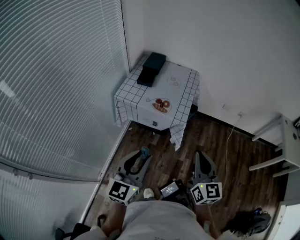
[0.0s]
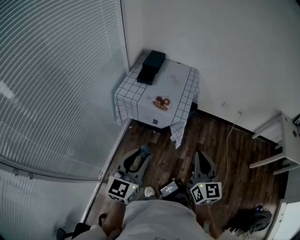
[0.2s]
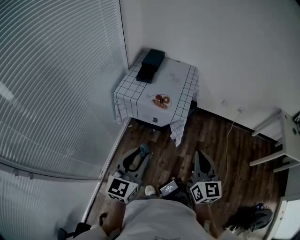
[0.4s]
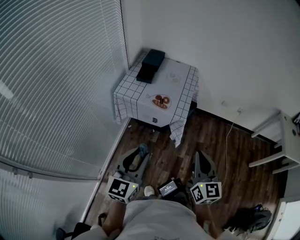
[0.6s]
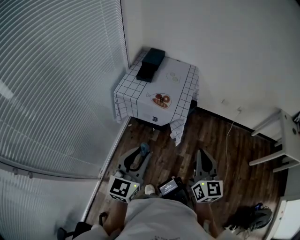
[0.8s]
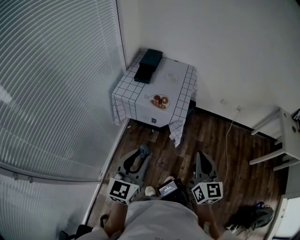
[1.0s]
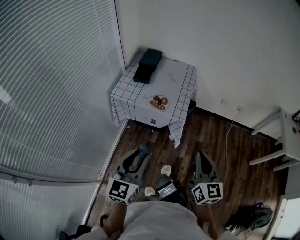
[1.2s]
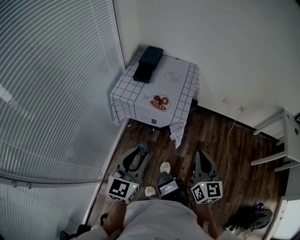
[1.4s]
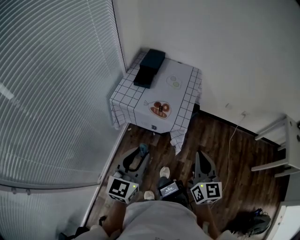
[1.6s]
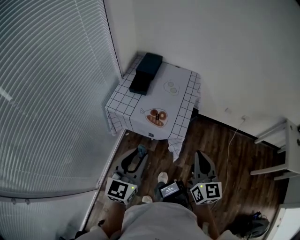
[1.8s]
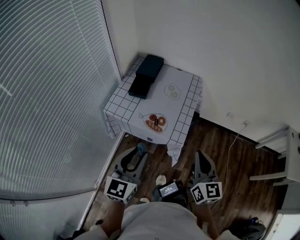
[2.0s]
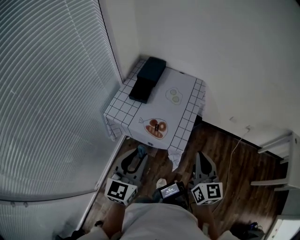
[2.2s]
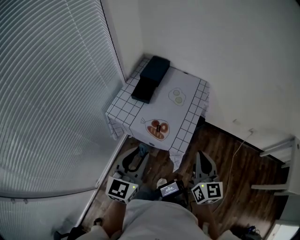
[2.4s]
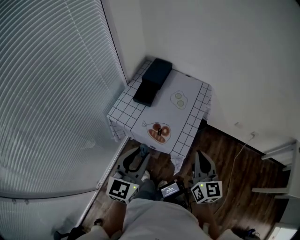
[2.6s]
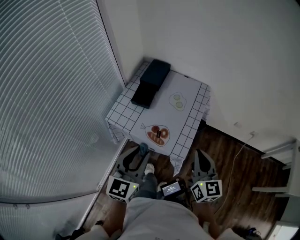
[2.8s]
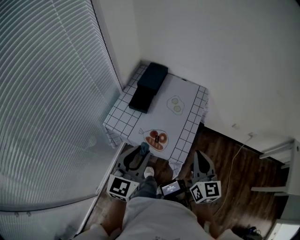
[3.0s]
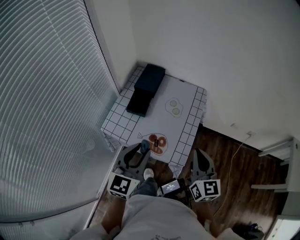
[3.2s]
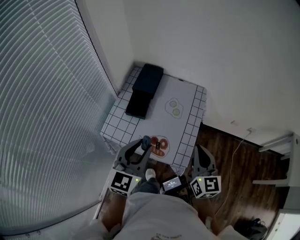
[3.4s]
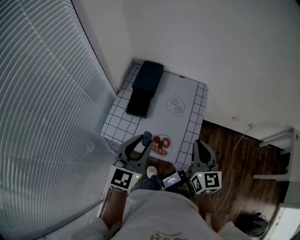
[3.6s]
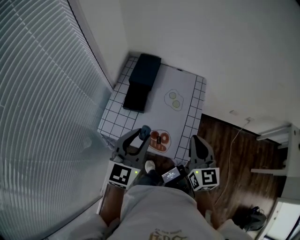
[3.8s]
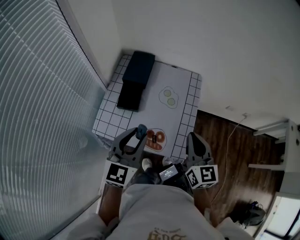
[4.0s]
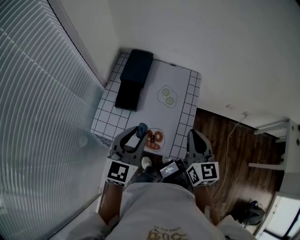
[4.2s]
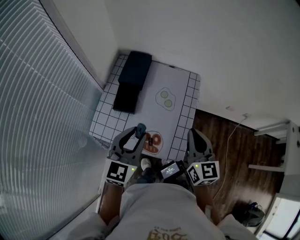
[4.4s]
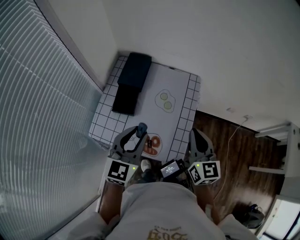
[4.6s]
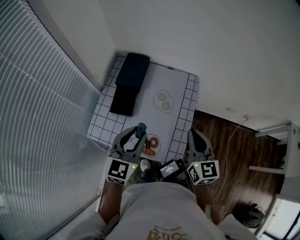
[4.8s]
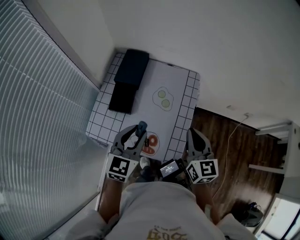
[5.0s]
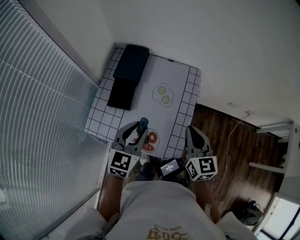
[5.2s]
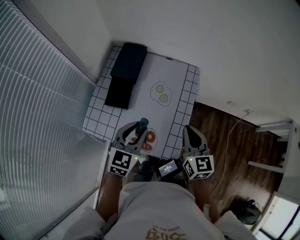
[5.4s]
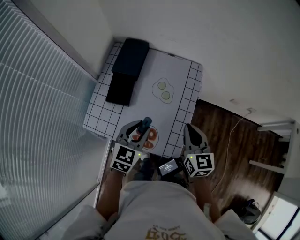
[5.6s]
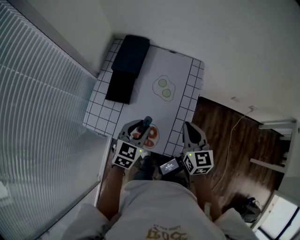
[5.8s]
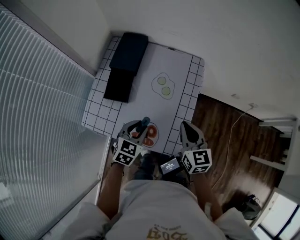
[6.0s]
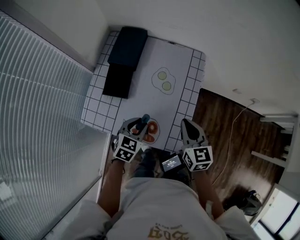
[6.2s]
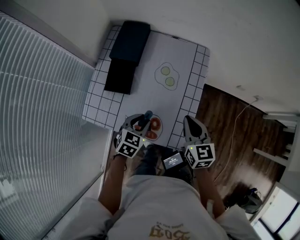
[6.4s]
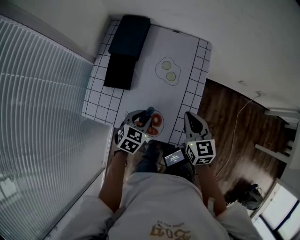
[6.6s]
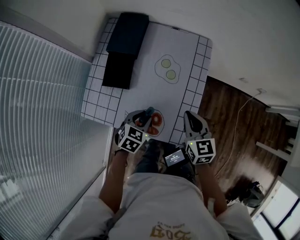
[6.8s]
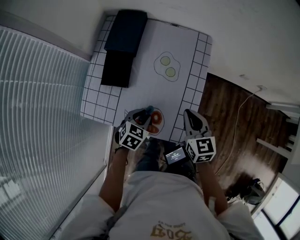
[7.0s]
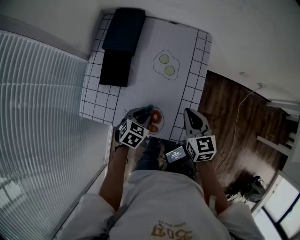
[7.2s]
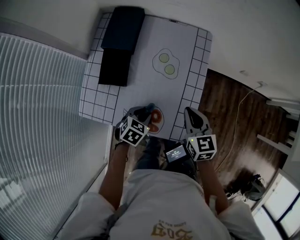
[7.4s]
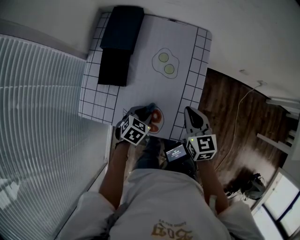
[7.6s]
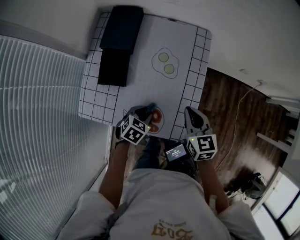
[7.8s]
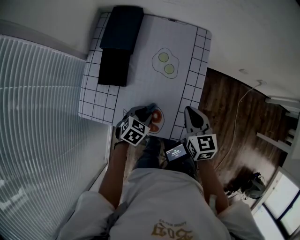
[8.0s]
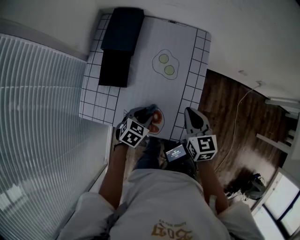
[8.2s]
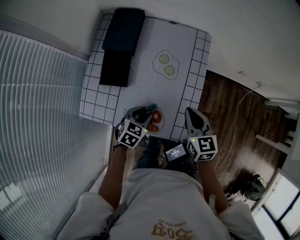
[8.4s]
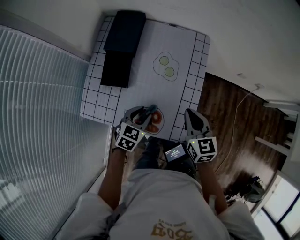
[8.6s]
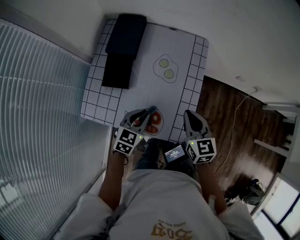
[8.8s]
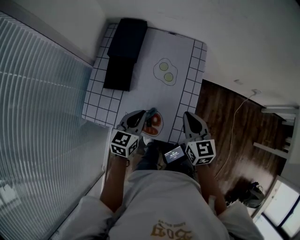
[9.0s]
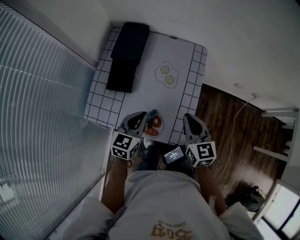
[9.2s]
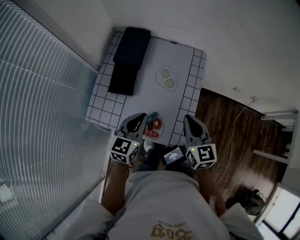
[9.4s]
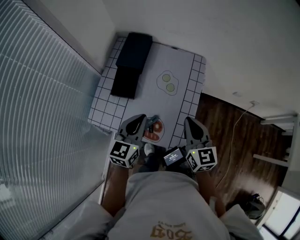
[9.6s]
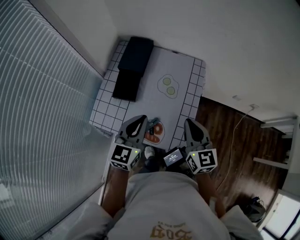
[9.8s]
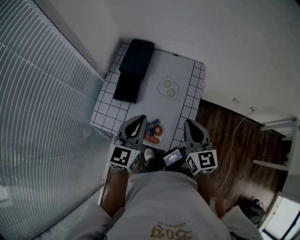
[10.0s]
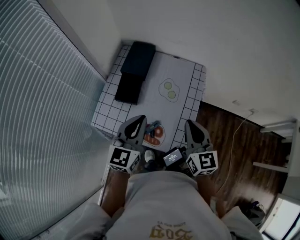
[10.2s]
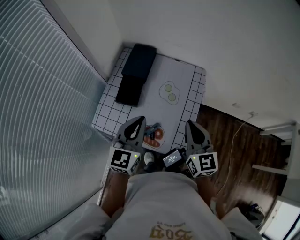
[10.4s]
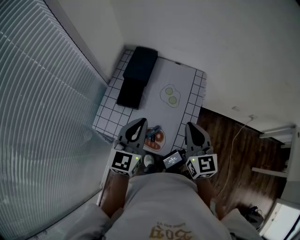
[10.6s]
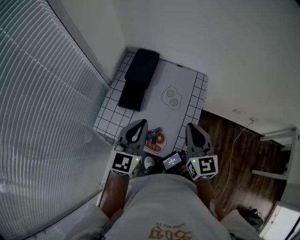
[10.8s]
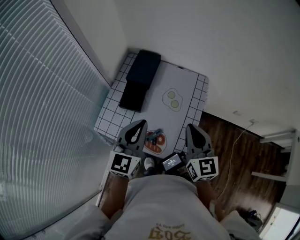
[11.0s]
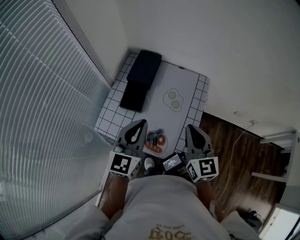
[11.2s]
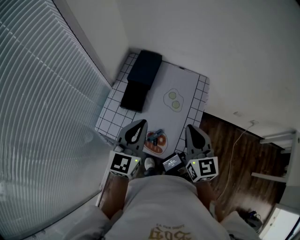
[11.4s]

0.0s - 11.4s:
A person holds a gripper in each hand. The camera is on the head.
0.0s - 1.4s: The left gripper changes place by some 5 cm.
1.4s - 2.8s: The grippers both shift forward by some 25 cm.
2.8s - 4.2s: Both grippers travel together forward, about 15 cm.
4.2s - 5.6s: The right gripper moves downward and forward, roughly 10 cm. The left gripper heads downward, to the right and forward, covering about 15 cm.
5.6s - 7.2s: The right gripper shifts roughly 10 cm downward. The left gripper moves downward, some 20 cm, and rotates about 30 degrees.
7.2s - 8.6s: There are only small adjustments of the grippers.
8.6s - 10.0s: The left gripper heads upward, covering about 25 cm, points its fingers about 30 degrees further upward, and closes up. The right gripper goes about 10 cm upward.
10.0s - 11.4s: There are only small adjustments of the grippers.

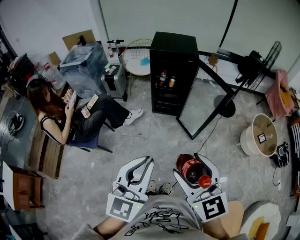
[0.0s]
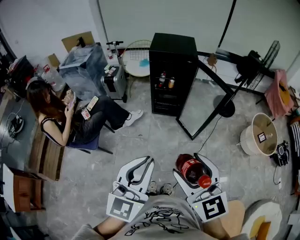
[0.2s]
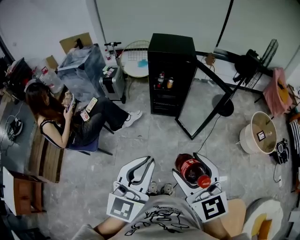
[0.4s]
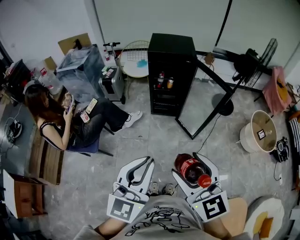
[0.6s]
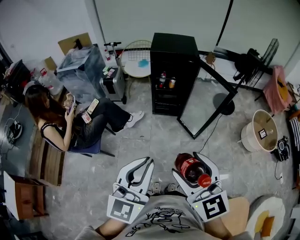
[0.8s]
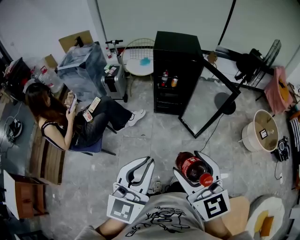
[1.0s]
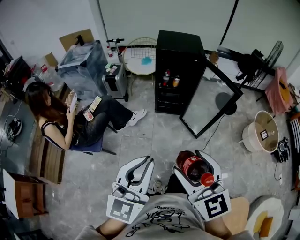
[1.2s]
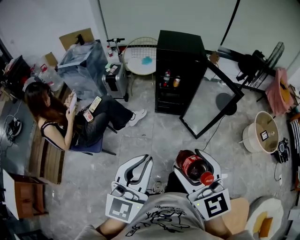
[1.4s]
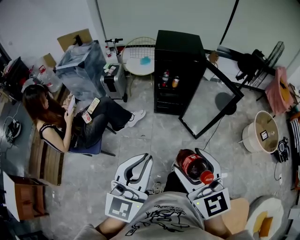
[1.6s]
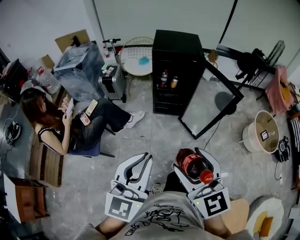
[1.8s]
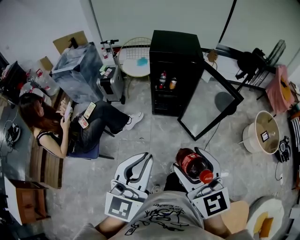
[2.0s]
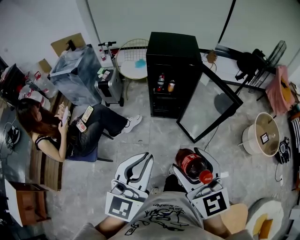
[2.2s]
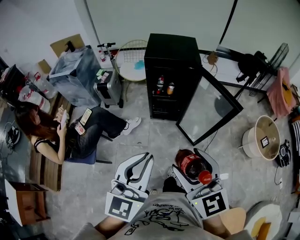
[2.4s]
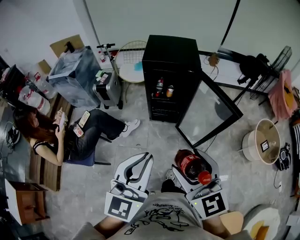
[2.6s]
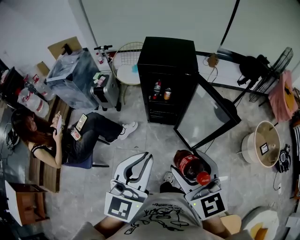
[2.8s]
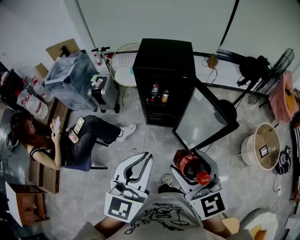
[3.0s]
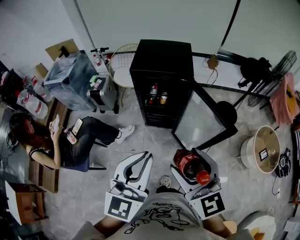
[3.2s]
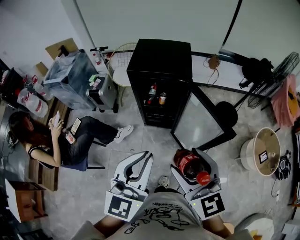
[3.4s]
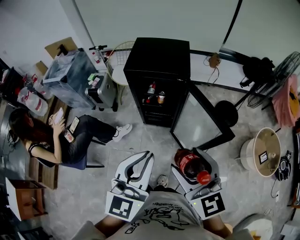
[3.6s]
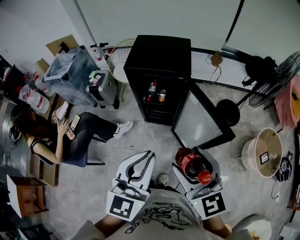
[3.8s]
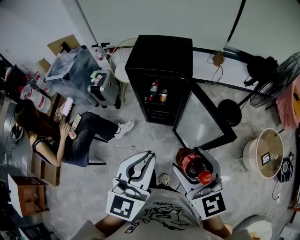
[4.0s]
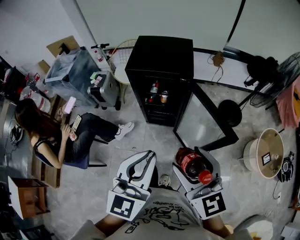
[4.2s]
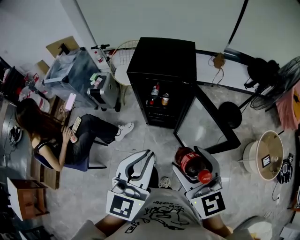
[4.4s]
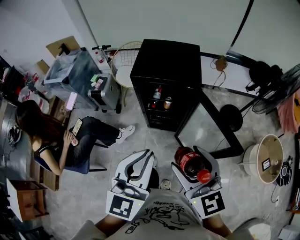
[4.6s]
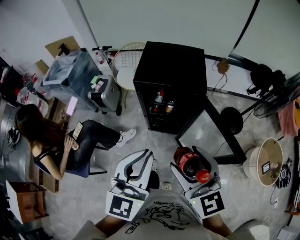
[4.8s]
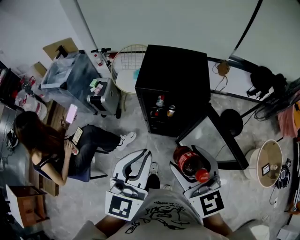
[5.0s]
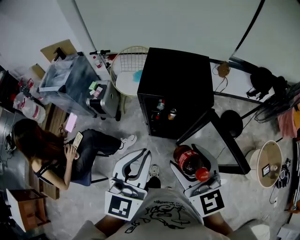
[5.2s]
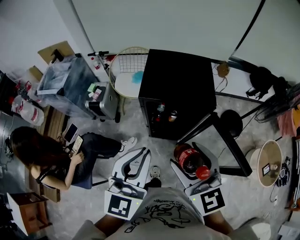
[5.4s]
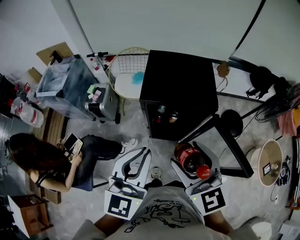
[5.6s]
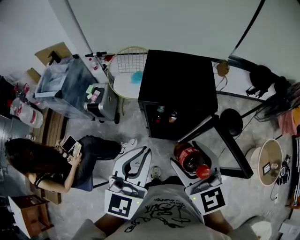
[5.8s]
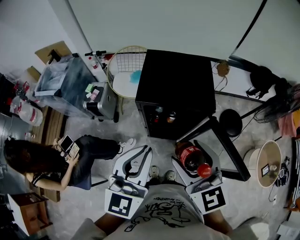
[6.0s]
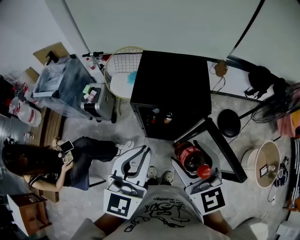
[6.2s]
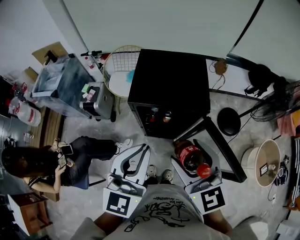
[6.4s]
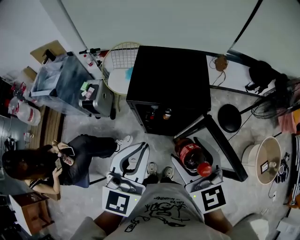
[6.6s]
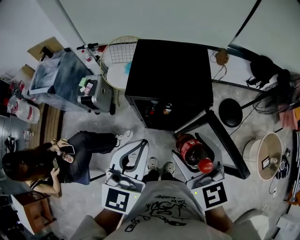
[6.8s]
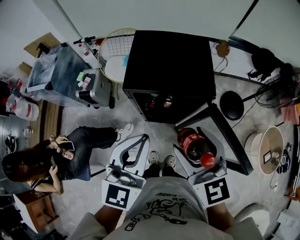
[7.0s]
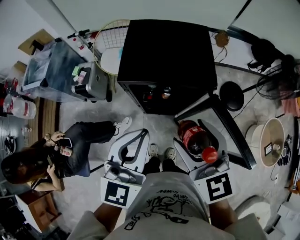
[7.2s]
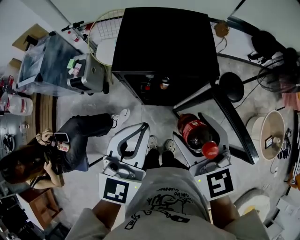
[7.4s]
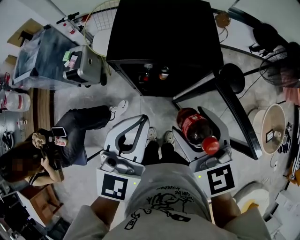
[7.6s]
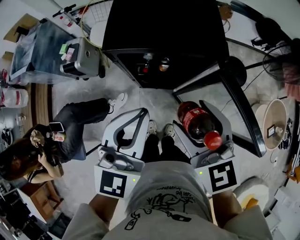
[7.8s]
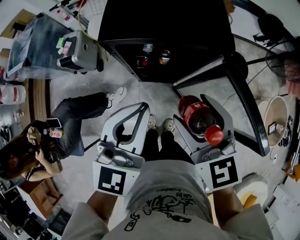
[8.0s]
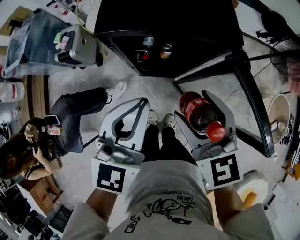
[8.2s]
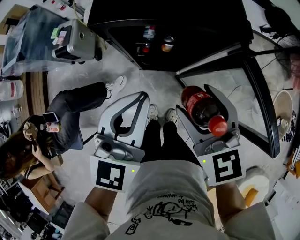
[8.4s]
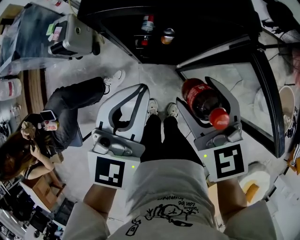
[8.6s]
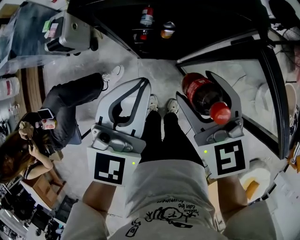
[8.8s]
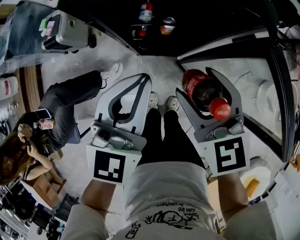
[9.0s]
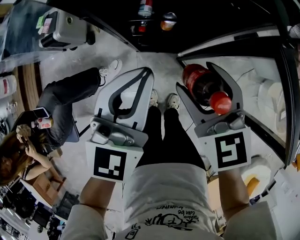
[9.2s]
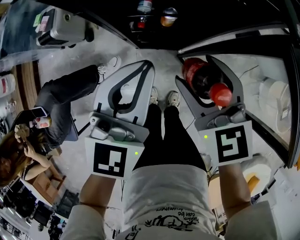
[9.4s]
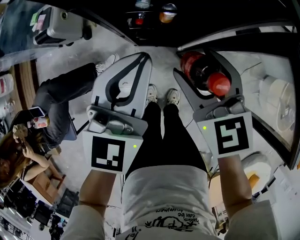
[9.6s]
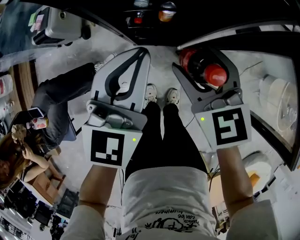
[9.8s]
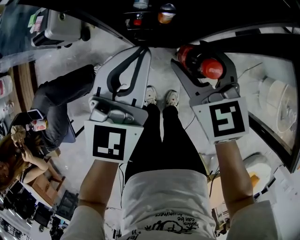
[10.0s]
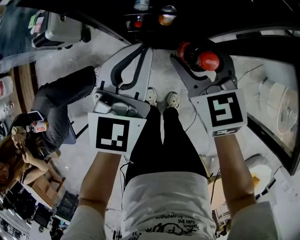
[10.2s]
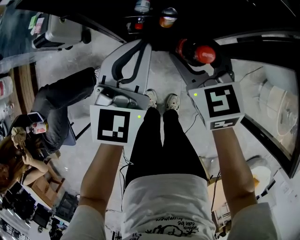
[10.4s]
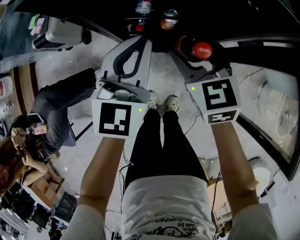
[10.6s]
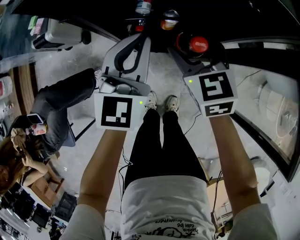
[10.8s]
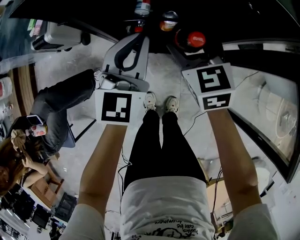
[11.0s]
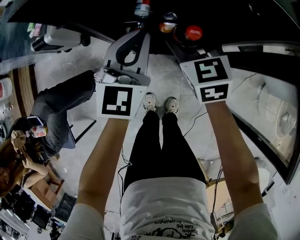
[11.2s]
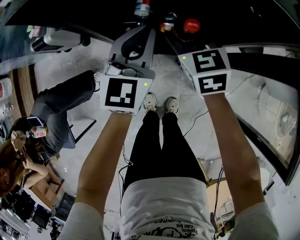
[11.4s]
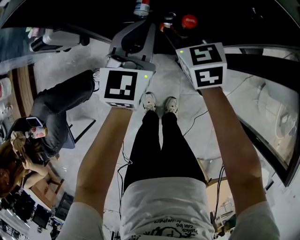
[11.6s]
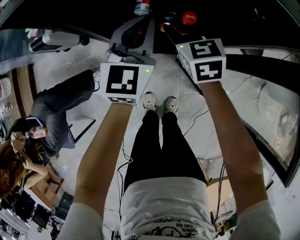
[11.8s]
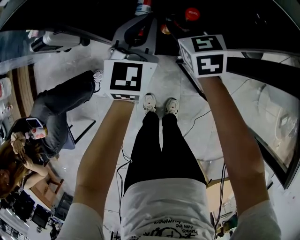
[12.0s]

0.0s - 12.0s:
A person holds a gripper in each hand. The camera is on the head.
0.0s - 1.6s: Both grippers move to the left and forward, about 10 cm.
1.6s - 3.0s: Both grippers travel together forward and to the right, some 25 cm.
3.0s - 4.4s: The grippers both shift forward and to the right by roughly 10 cm.
4.4s - 6.0s: The left gripper moves forward and to the left, about 20 cm. Meanwhile the right gripper heads forward, covering approximately 20 cm.
6.0s - 7.6s: Both grippers move downward, roughly 10 cm.
7.6s - 9.0s: The grippers both shift downward by approximately 15 cm.
9.0s - 10.4s: The two grippers go roughly 15 cm downward and forward.
10.4s - 12.0s: The grippers both shift forward and downward by roughly 15 cm.

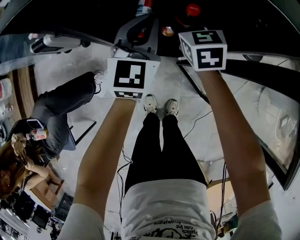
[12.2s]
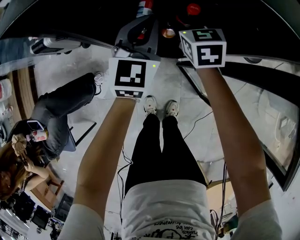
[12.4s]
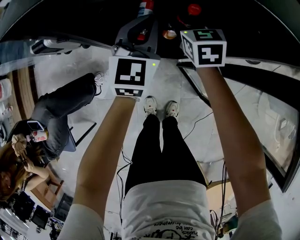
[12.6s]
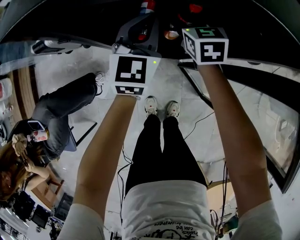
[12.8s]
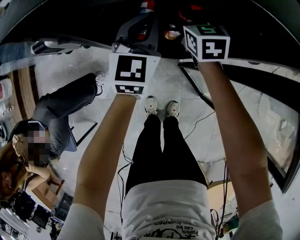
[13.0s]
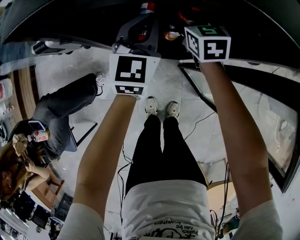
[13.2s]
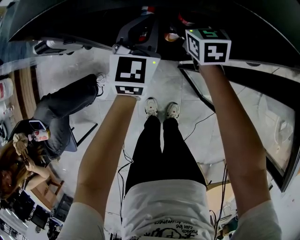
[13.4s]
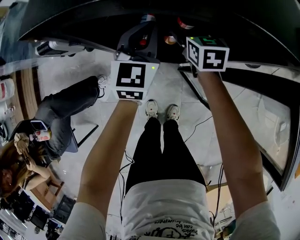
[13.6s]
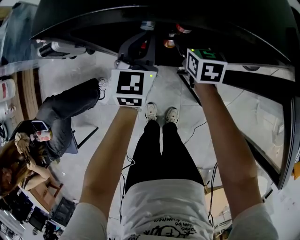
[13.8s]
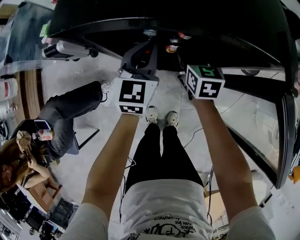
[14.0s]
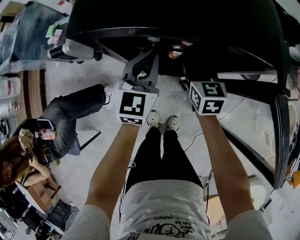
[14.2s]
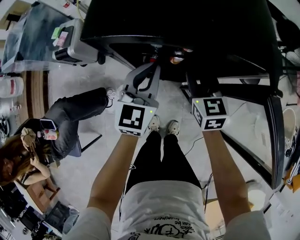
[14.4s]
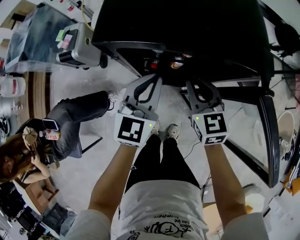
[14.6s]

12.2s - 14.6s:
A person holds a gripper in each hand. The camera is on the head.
12.2s - 13.4s: The grippers move only a little.
13.4s - 14.6s: Both grippers travel together backward and upward, approximately 15 cm. The right gripper closes its fingers.
